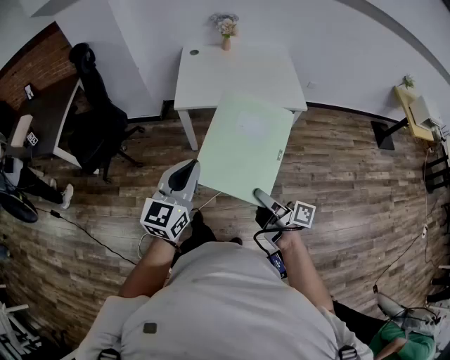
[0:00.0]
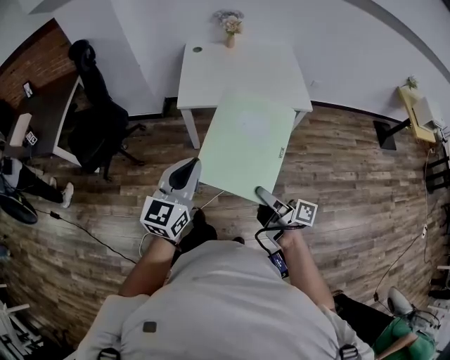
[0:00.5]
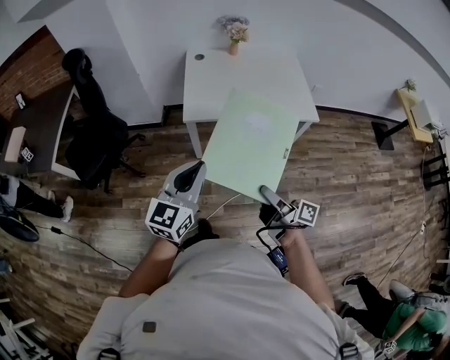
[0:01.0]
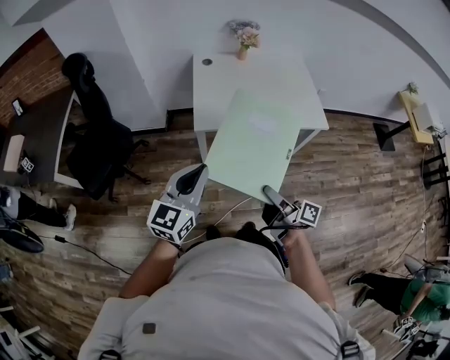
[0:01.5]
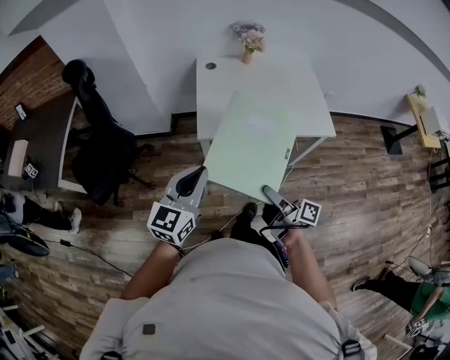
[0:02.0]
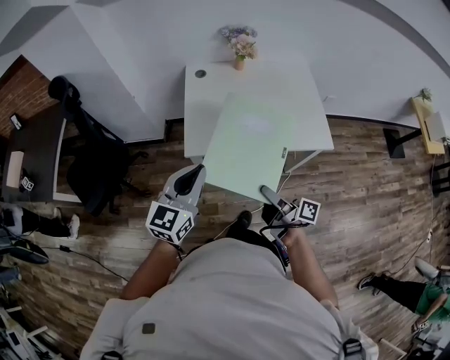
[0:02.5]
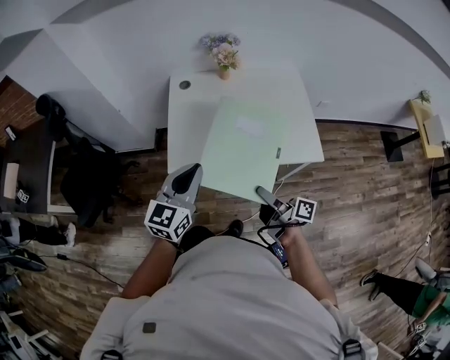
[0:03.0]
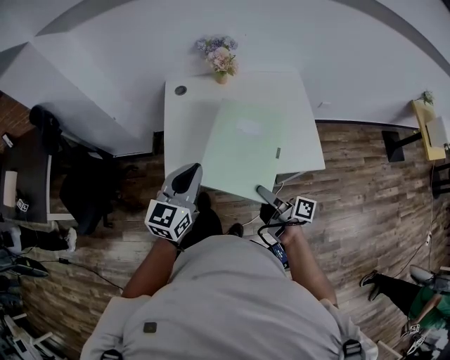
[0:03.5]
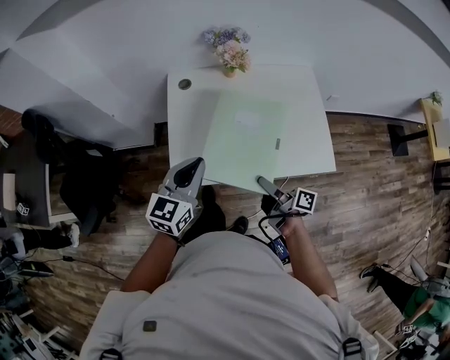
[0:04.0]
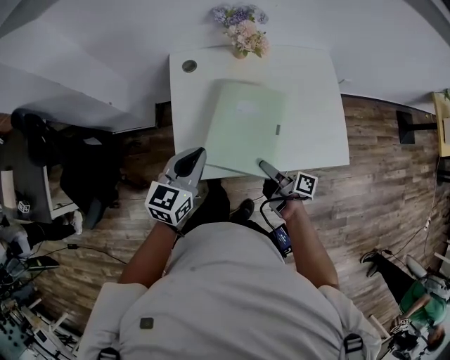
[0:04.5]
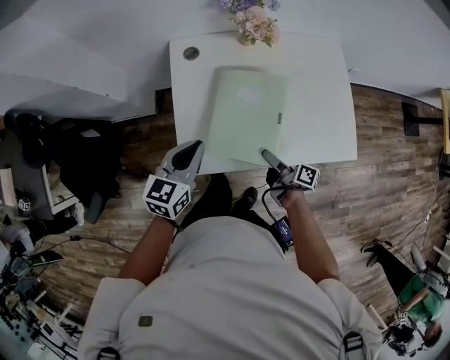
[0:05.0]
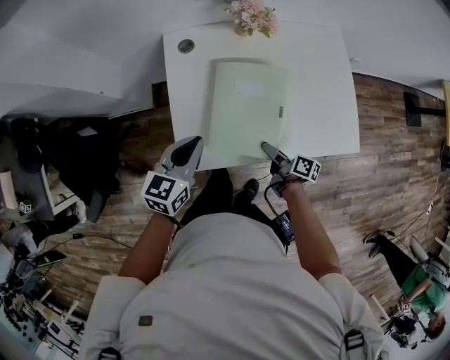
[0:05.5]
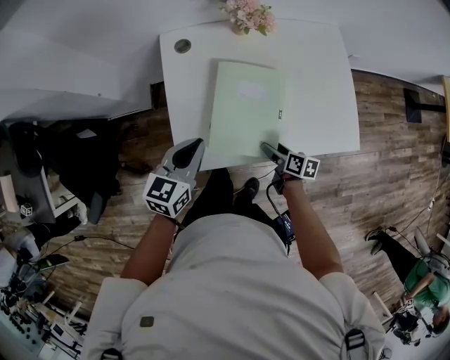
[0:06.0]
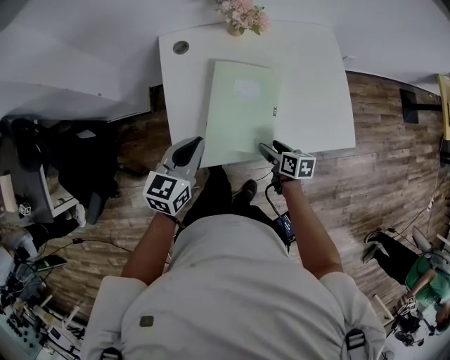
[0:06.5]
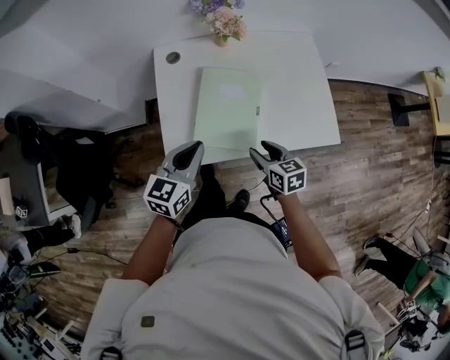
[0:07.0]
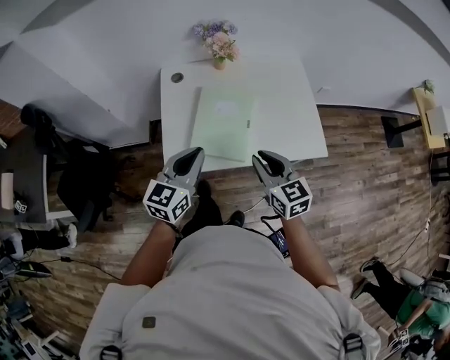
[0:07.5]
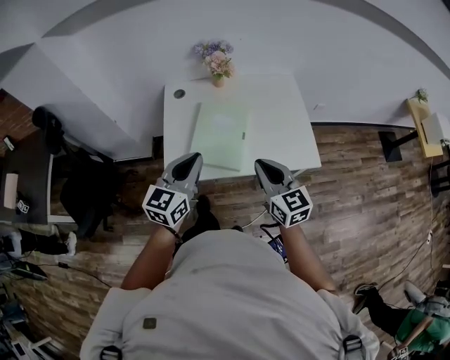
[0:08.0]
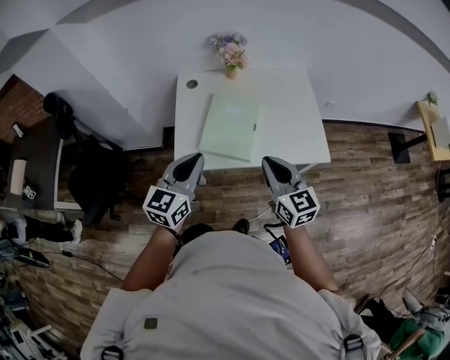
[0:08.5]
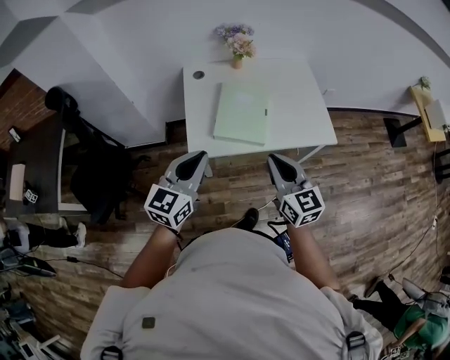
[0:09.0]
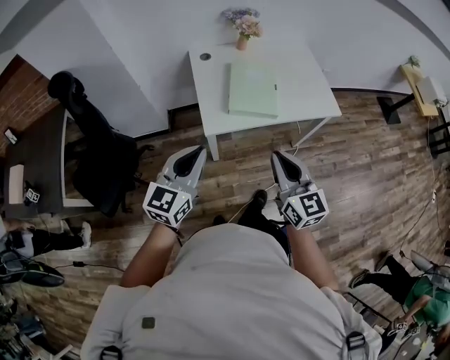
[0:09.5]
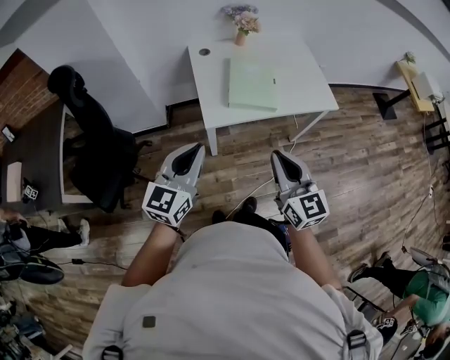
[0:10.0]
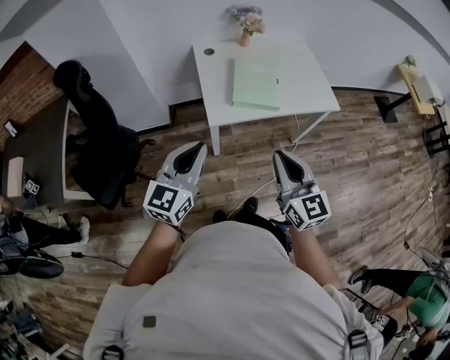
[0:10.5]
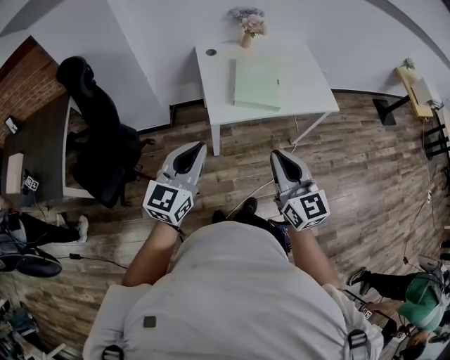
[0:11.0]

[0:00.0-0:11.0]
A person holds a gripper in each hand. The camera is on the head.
0:00.0 to 0:02.0: Both grippers move forward and to the left, about 30 cm.
0:02.0 to 0:03.5: Both grippers move forward and to the right, some 25 cm.
0:03.5 to 0:05.5: The right gripper travels downward and forward by roughly 25 cm, and turns by roughly 20 degrees, while the left gripper moves forward, downward and to the left, some 25 cm.
0:05.5 to 0:07.5: The left gripper shifts roughly 20 cm backward, upward and to the right. Meanwhile the right gripper heads upward, covering approximately 25 cm, rotates around the line of its fingers by approximately 70 degrees, counterclockwise from behind, and closes.
0:07.5 to 0:09.0: The right gripper is displaced backward, upward and to the left by some 15 cm; the left gripper heads backward, to the left and upward, covering some 15 cm.
0:09.0 to 0:11.0: Both grippers move backward and to the left, roughly 25 cm.

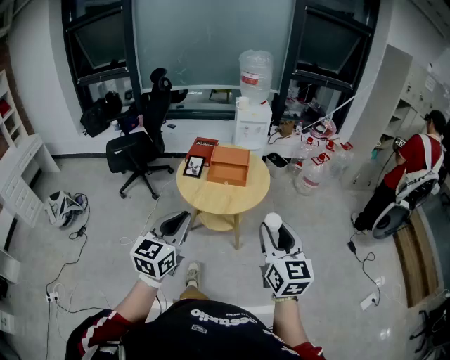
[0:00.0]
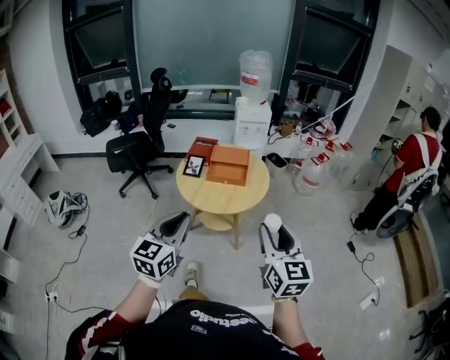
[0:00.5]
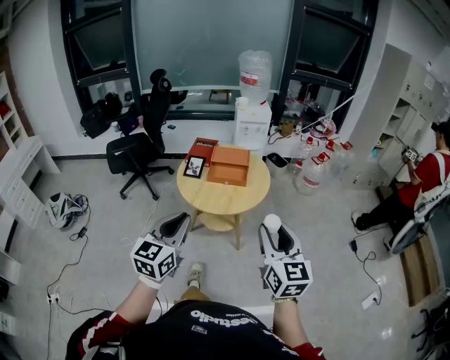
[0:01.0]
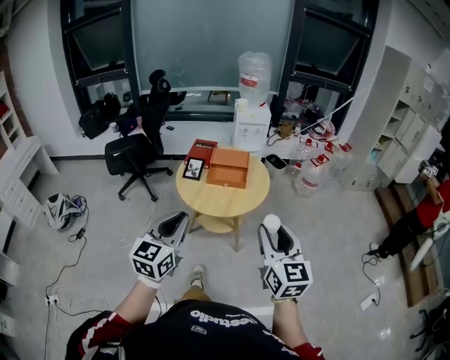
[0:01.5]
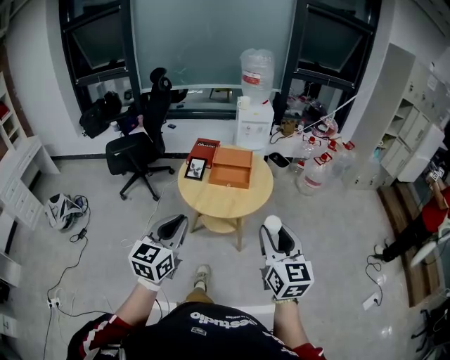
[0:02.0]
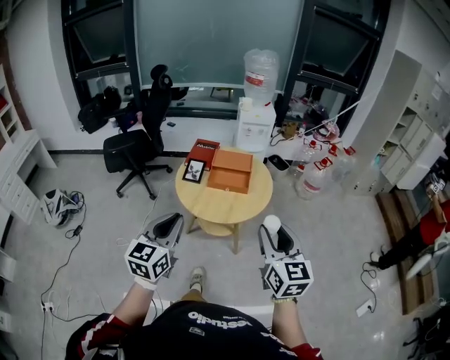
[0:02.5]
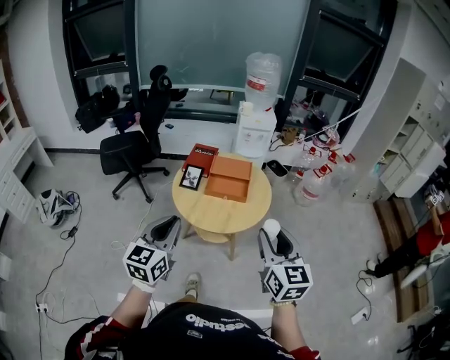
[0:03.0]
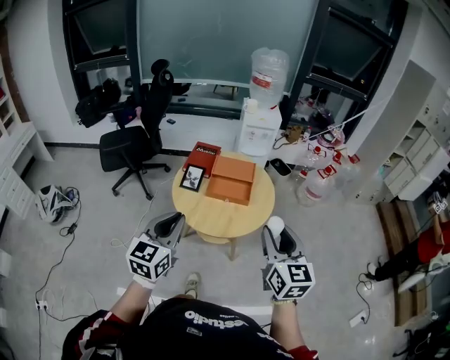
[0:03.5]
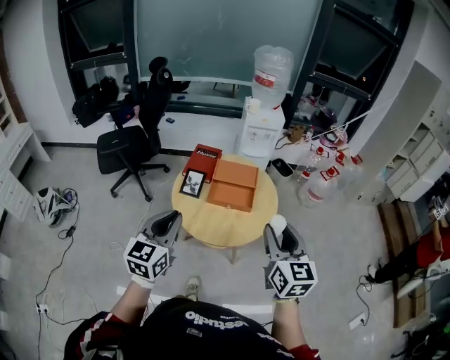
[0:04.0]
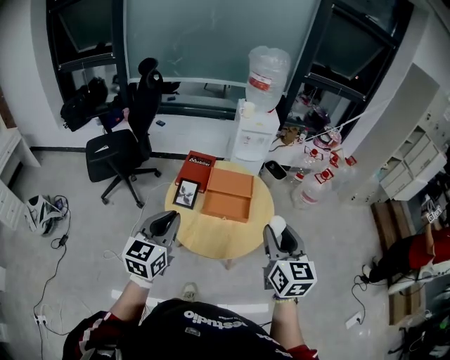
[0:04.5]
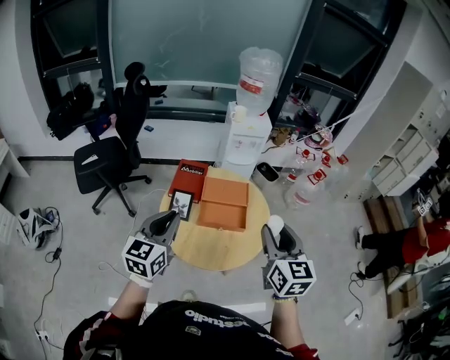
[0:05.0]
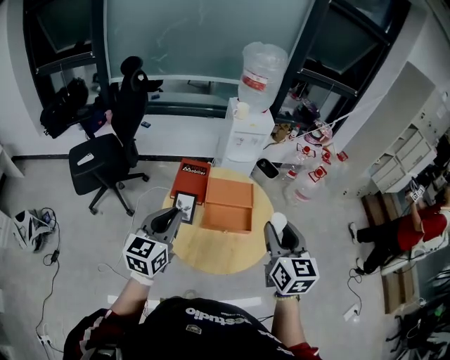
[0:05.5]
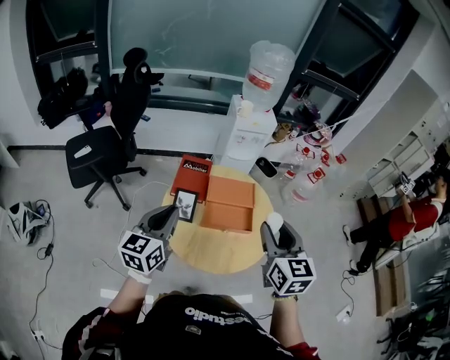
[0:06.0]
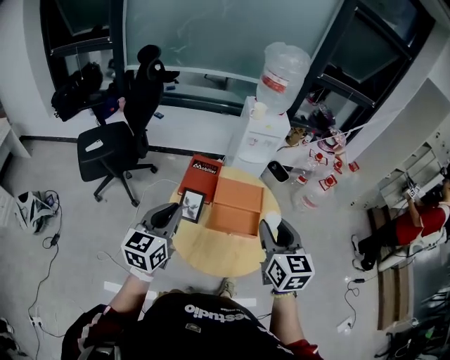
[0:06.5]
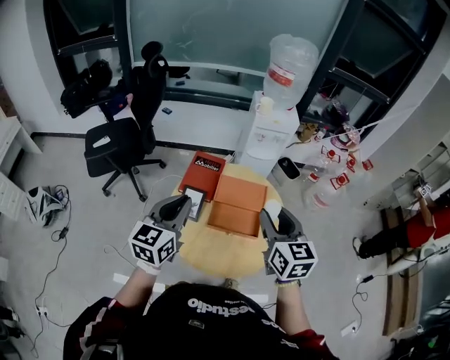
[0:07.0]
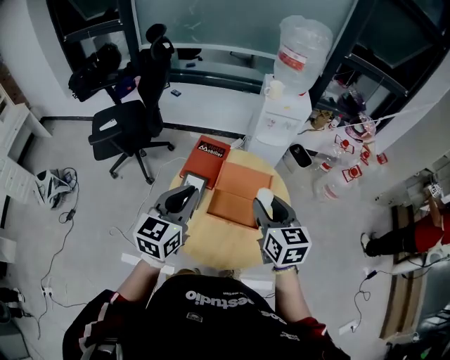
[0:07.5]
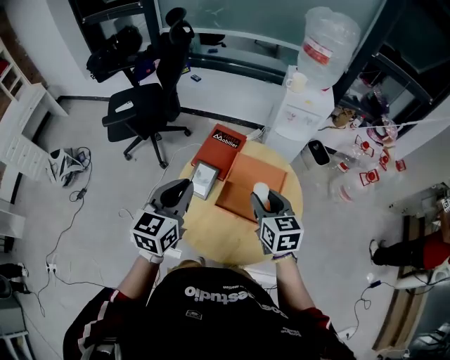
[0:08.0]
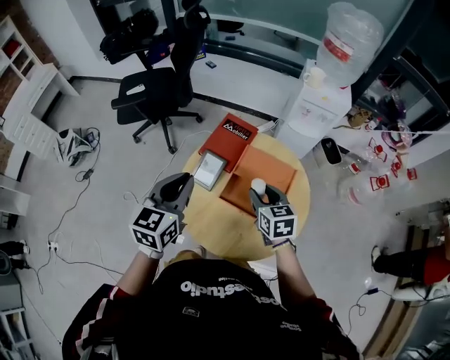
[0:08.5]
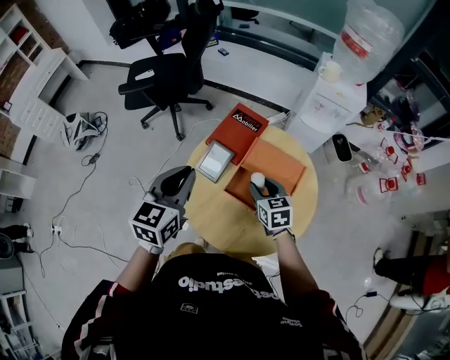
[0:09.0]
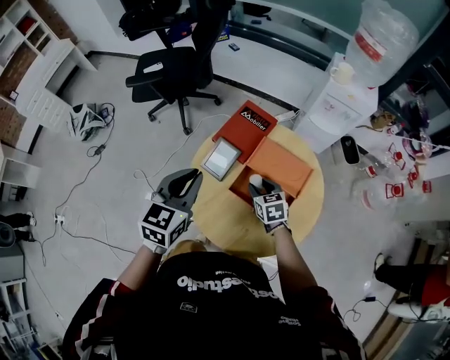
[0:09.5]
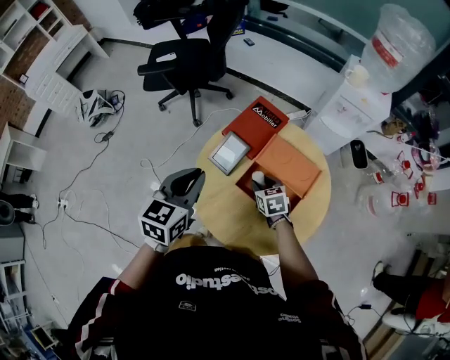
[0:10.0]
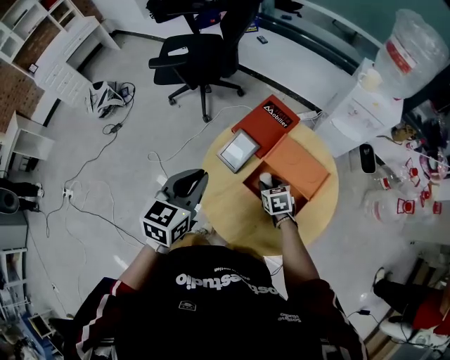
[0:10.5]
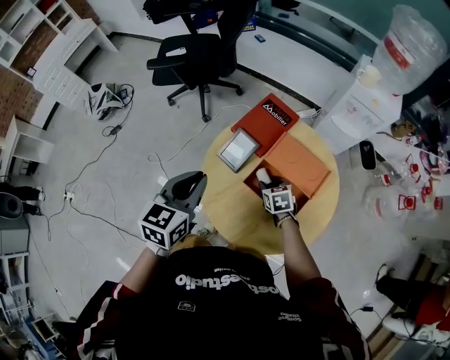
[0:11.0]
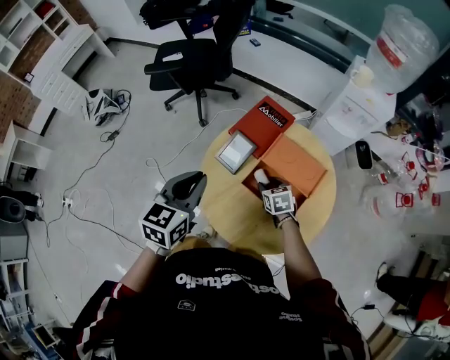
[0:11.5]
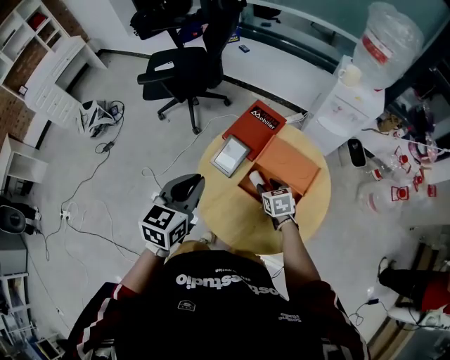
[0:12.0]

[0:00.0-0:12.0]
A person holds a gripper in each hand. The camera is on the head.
0:00.0 to 0:02.0: There are only small adjustments of the grippers.
0:02.0 to 0:04.0: The grippers both shift forward by some 20 cm.
0:04.0 to 0:06.0: Both grippers travel together forward and to the left, about 20 cm.
0:06.0 to 0:08.0: The left gripper goes approximately 10 cm to the right and forward, while the right gripper shifts approximately 20 cm forward and downward, and rotates about 30 degrees.
0:08.0 to 0:10.0: The left gripper moves downward, about 5 cm, while the right gripper travels downward by about 25 cm, and swivels some 30 degrees.
0:10.0 to 0:12.0: The grippers stay close to where they were, moving slightly.

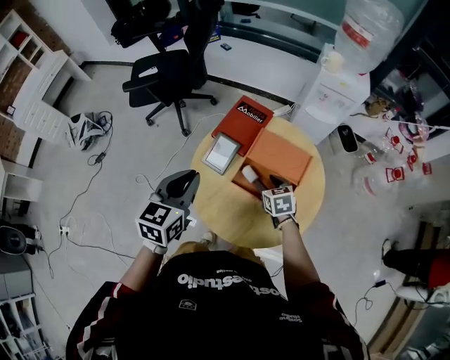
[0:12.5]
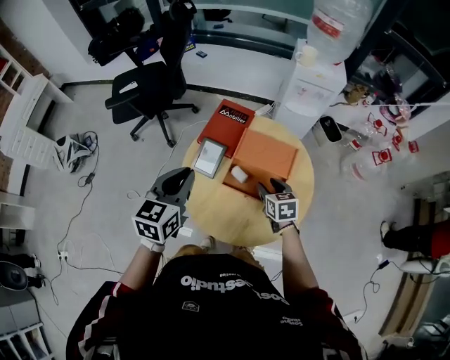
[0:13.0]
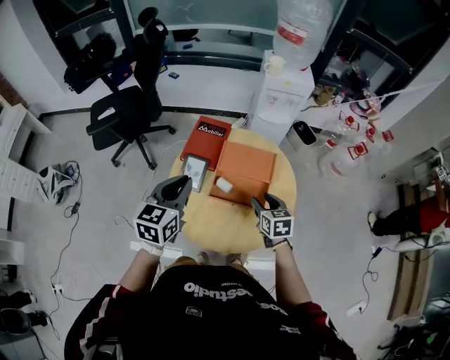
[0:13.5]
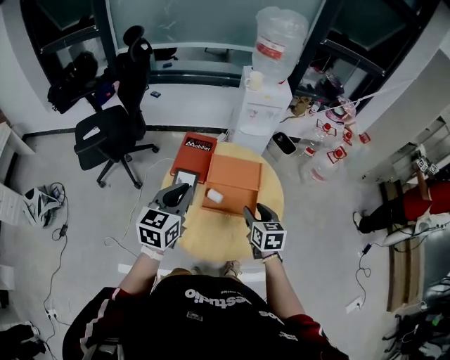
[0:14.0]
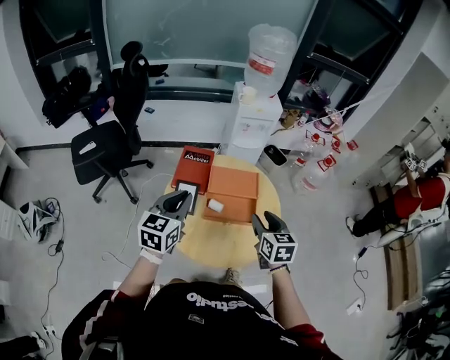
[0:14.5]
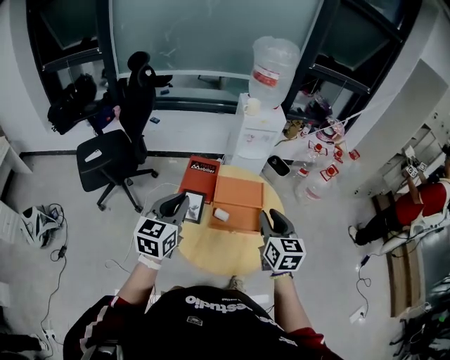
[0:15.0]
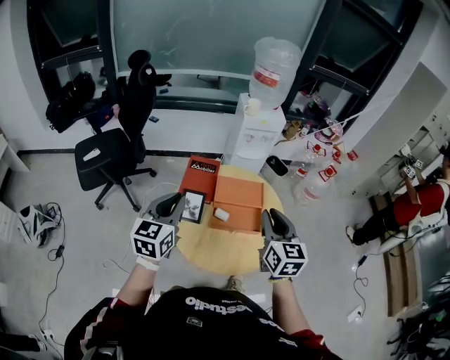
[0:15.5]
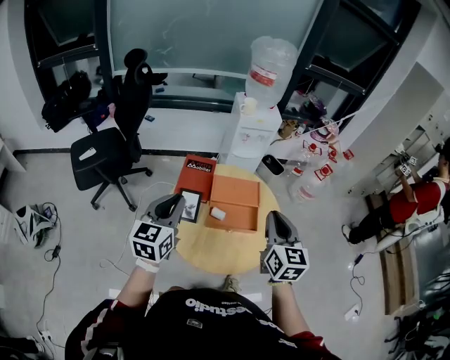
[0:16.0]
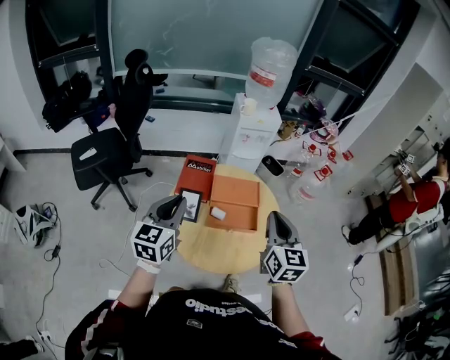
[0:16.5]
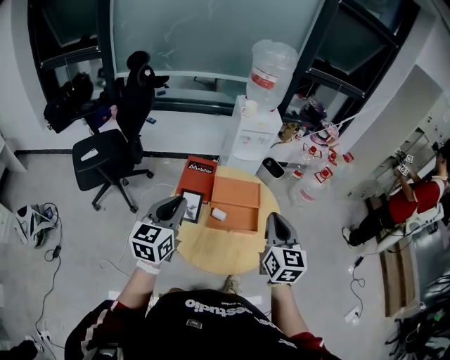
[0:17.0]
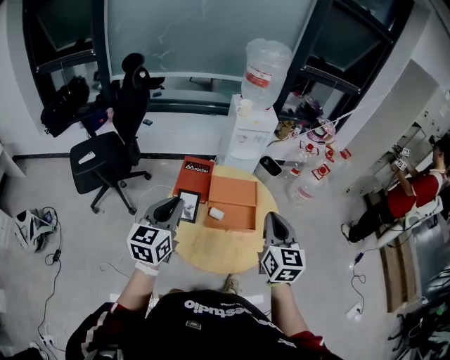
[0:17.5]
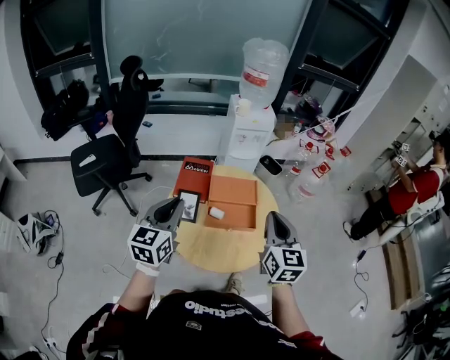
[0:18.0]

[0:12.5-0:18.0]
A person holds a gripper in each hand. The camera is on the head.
0:12.5 to 0:14.5: The left gripper changes its angle by about 30 degrees; the right gripper moves upward, some 20 cm, and swivels about 40 degrees.
0:14.5 to 0:16.0: The right gripper goes about 10 cm upward, turns by some 20 degrees, and closes its fingers. The left gripper ends up some 5 cm from where it was.
0:16.0 to 0:18.0: The grippers move only a little.
